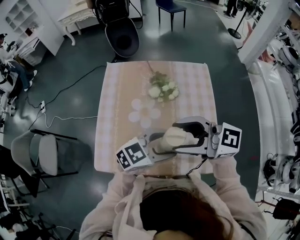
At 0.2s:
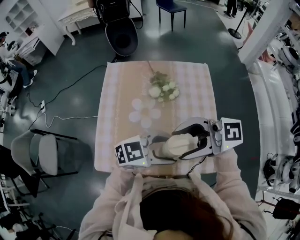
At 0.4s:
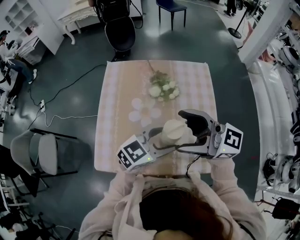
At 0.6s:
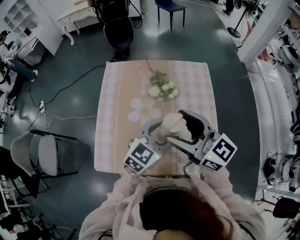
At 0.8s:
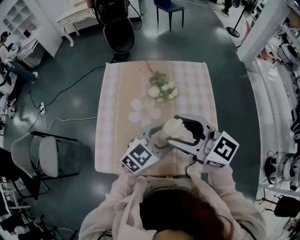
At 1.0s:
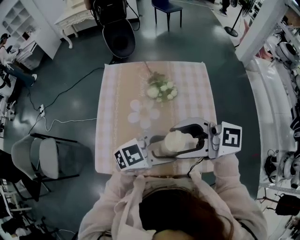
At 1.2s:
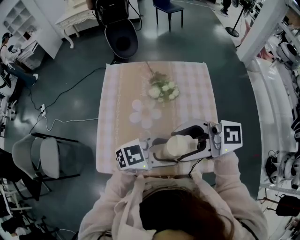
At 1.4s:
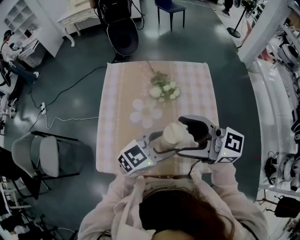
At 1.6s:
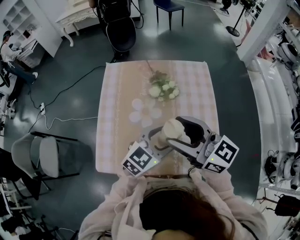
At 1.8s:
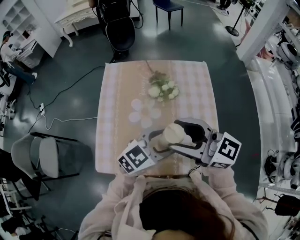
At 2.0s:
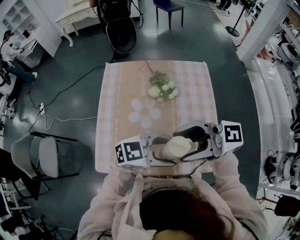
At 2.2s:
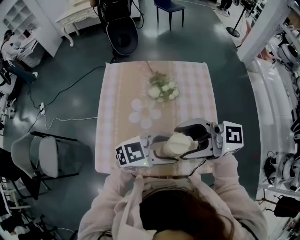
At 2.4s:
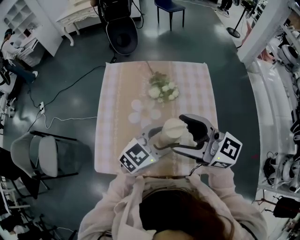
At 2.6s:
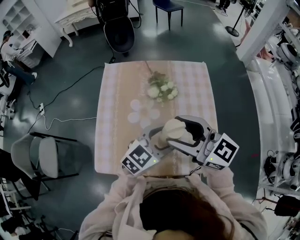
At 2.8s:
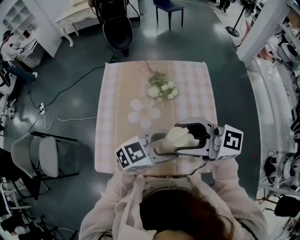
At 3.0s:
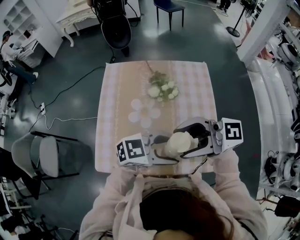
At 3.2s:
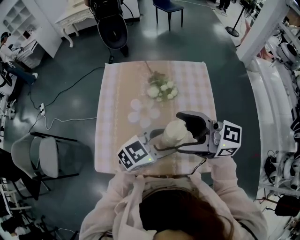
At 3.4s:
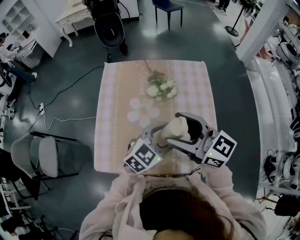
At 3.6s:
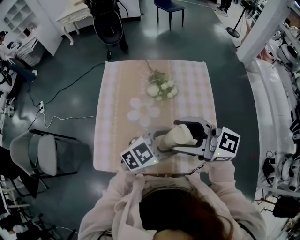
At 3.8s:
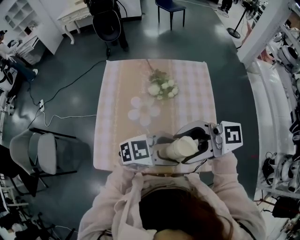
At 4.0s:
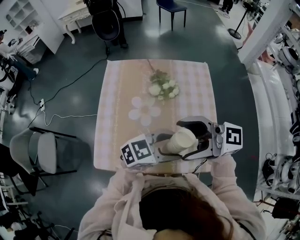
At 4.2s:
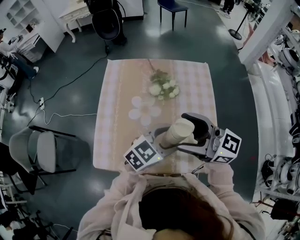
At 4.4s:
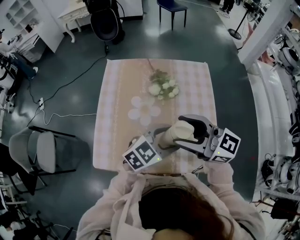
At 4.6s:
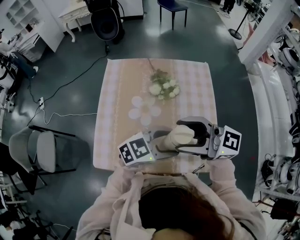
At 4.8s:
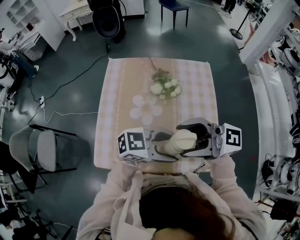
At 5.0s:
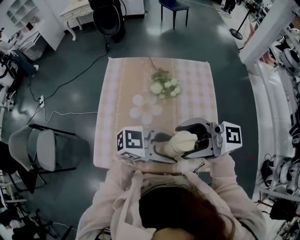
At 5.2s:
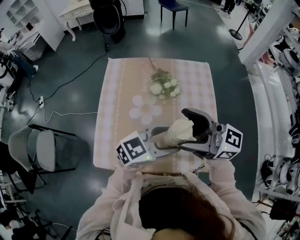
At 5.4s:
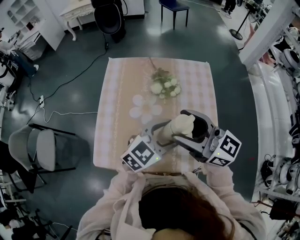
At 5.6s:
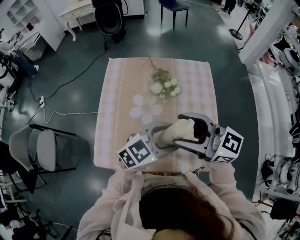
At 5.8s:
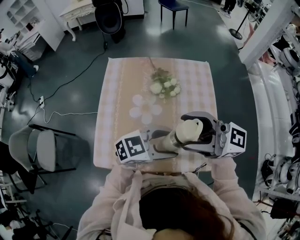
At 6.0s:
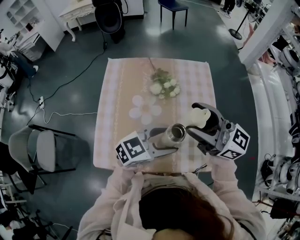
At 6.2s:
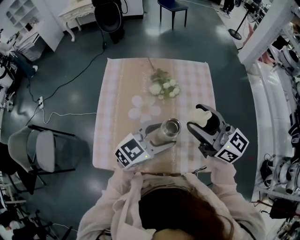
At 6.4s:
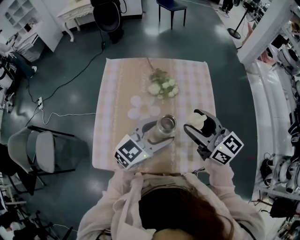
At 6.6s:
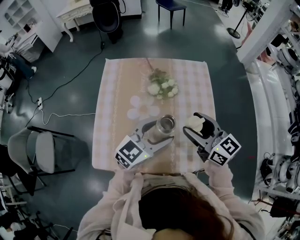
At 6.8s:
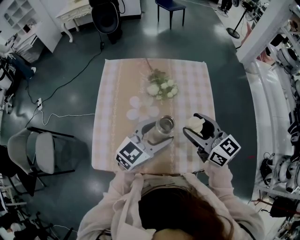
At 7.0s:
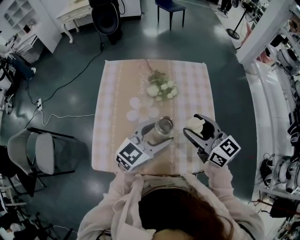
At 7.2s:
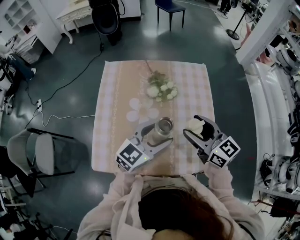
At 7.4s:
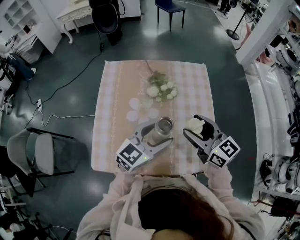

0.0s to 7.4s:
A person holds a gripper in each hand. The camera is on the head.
1.4s to 3.0s: The left gripper rotates about 20 degrees. Meanwhile the right gripper changes its angle by about 20 degrees.
3.0s to 4.4s: The right gripper rotates some 30 degrees. Meanwhile the left gripper changes place by some 5 cm, and turns by roughly 30 degrees.
4.4s to 6.0s: The right gripper changes place by roughly 5 cm.
6.0s to 7.4s: The right gripper shifts about 10 cm downward, and turns by about 30 degrees, while the left gripper ends up approximately 5 cm from where it was, and rotates about 20 degrees.

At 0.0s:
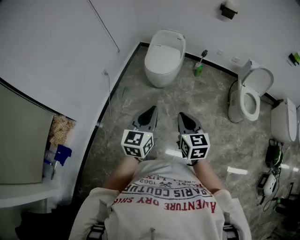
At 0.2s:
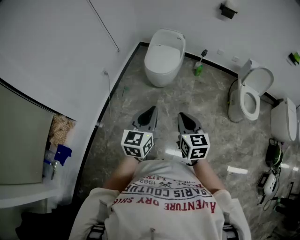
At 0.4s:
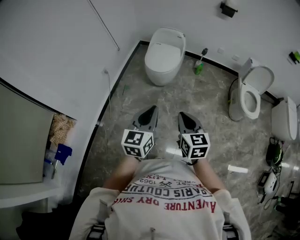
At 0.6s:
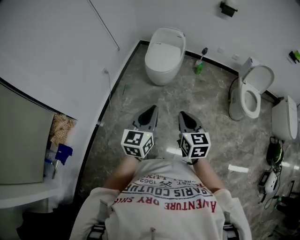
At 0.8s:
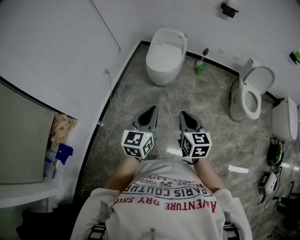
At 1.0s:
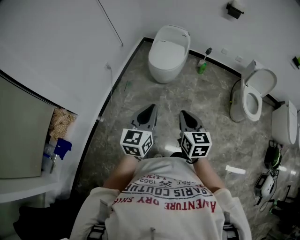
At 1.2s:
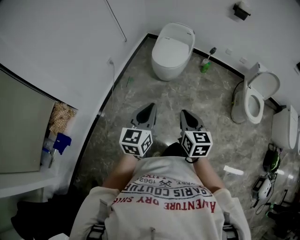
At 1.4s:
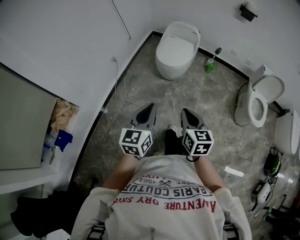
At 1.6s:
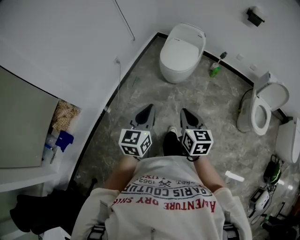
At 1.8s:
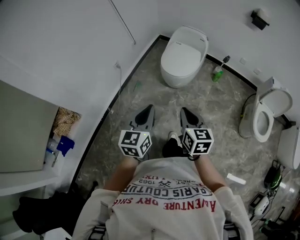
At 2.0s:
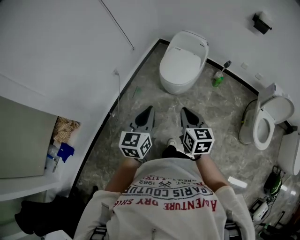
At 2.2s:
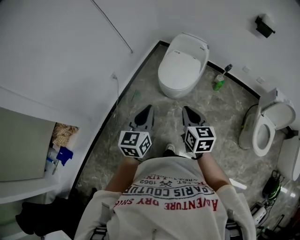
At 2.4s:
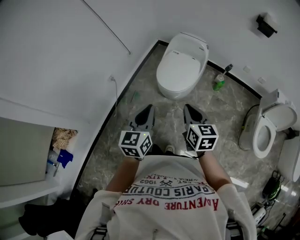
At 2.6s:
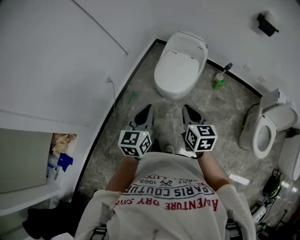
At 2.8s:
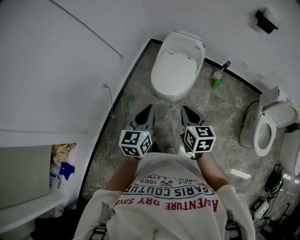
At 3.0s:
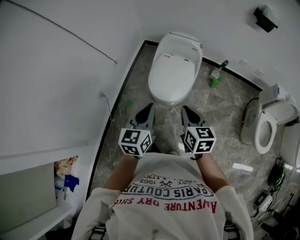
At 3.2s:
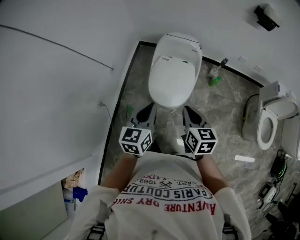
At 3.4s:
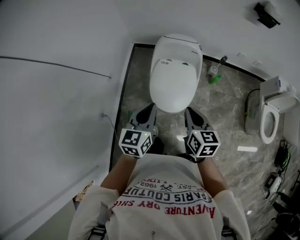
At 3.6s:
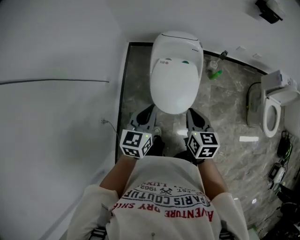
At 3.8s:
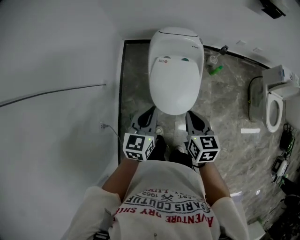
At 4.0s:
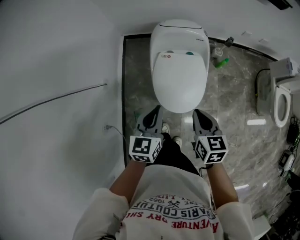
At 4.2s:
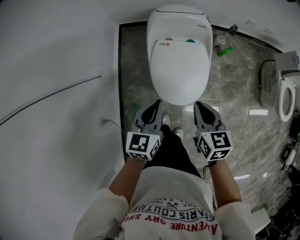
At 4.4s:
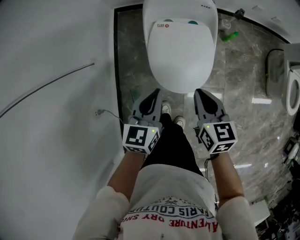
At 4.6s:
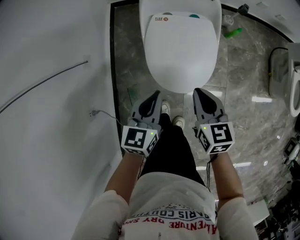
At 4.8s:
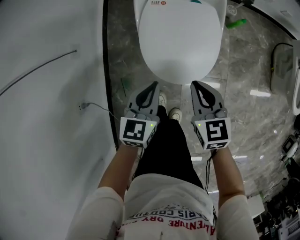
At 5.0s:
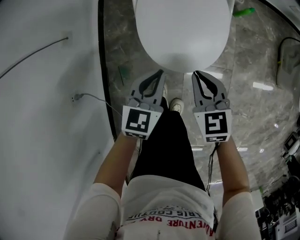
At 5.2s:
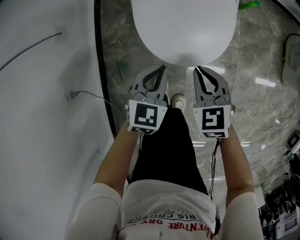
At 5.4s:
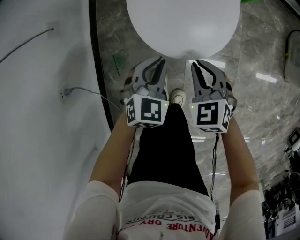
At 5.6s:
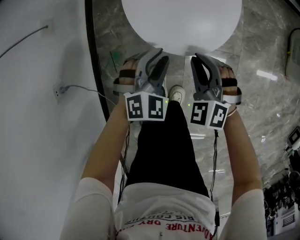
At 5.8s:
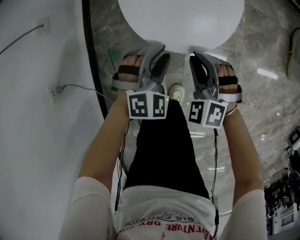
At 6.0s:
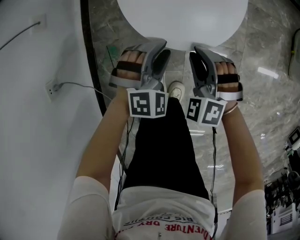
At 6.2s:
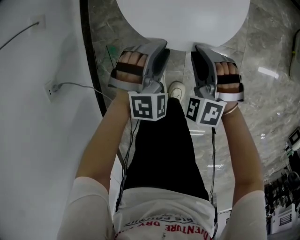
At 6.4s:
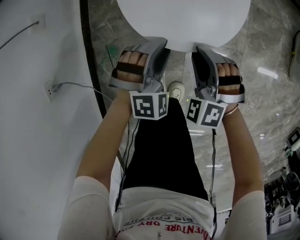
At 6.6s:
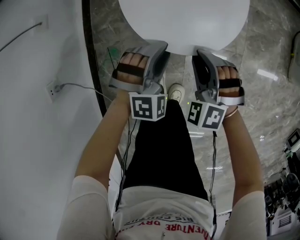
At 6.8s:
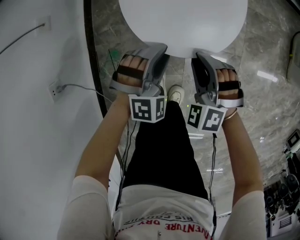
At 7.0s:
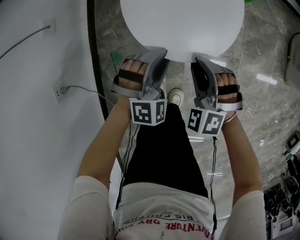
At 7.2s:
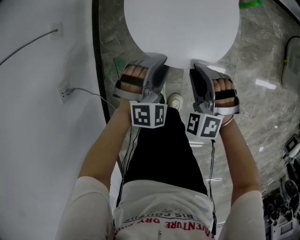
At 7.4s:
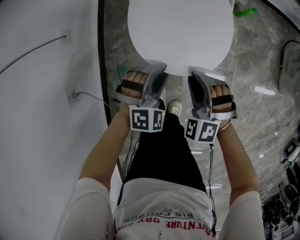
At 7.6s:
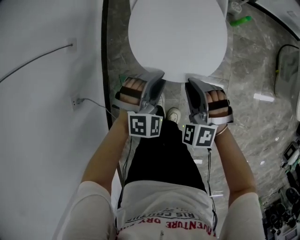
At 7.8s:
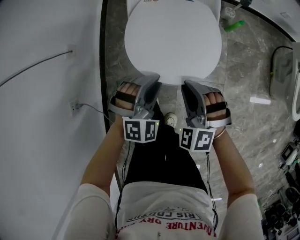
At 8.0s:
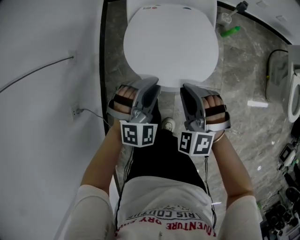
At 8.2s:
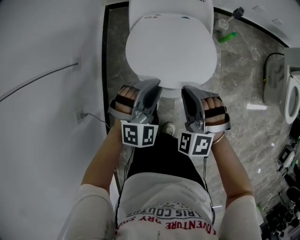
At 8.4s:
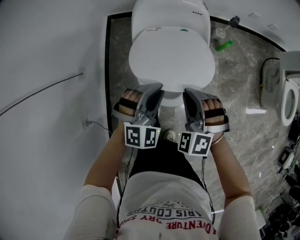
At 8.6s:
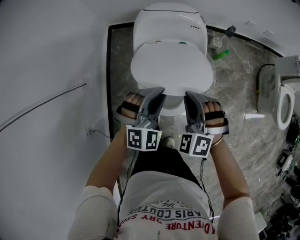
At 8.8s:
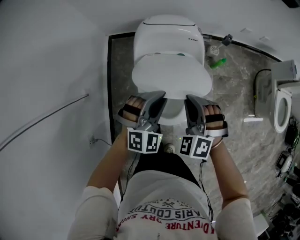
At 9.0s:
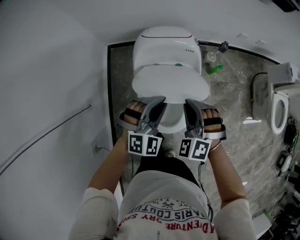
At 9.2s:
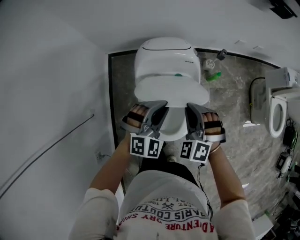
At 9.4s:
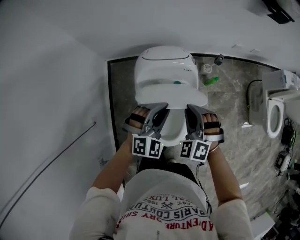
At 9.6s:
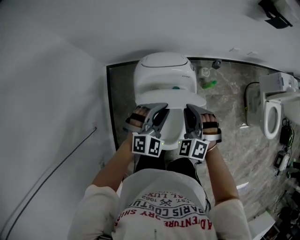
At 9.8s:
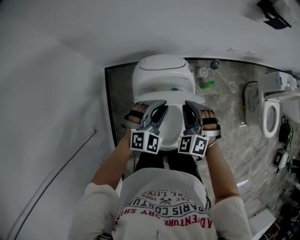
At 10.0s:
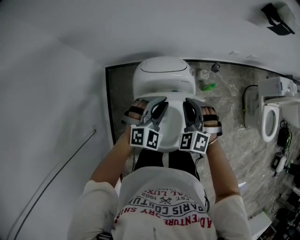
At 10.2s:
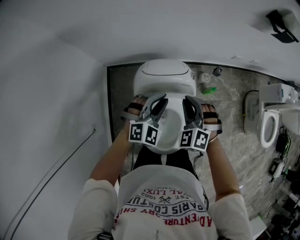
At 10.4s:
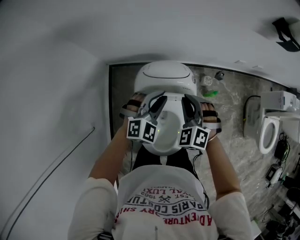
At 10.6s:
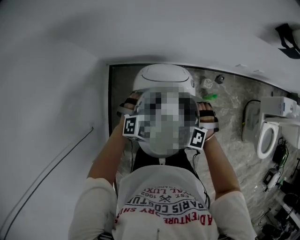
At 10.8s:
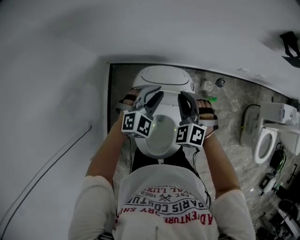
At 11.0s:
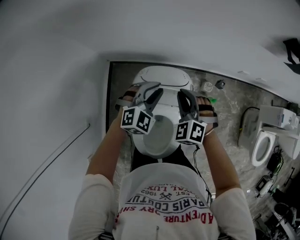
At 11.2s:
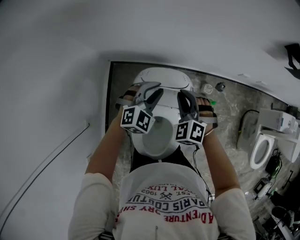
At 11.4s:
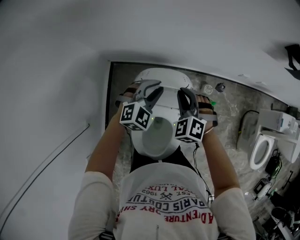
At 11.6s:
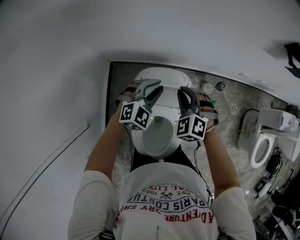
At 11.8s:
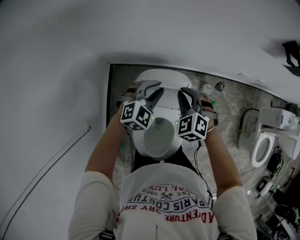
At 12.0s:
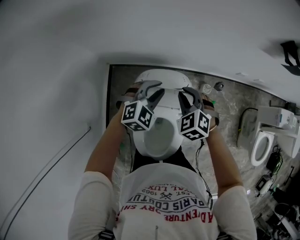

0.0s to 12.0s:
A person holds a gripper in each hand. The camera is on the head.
0.0s to 1.6s: The right gripper is displaced forward by some 10 cm; the left gripper shifts about 10 cm forward and to the left.
1.6s to 3.0s: The two grippers travel together, forward, about 40 cm.
3.0s to 4.4s: The two grippers go about 35 cm forward, downward and to the left. The left gripper rotates about 20 degrees.
4.4s to 6.0s: The grippers both shift downward by roughly 35 cm. The left gripper twists roughly 70 degrees clockwise, seen from behind, and opens its fingers, while the right gripper twists some 70 degrees counterclockwise, seen from behind.
6.0s to 7.6s: The grippers both shift upward by roughly 15 cm.
7.6s to 9.0s: The grippers both shift upward and forward by approximately 30 cm.
9.0s to 10.4s: The grippers both shift forward by roughly 20 cm.
10.4s to 12.0s: Both grippers travel together forward, about 10 cm.

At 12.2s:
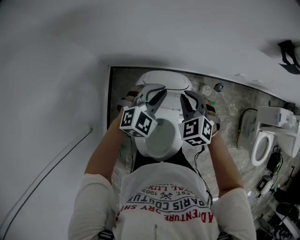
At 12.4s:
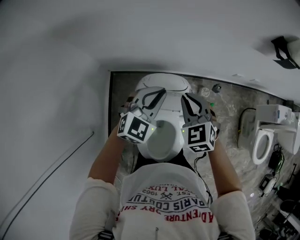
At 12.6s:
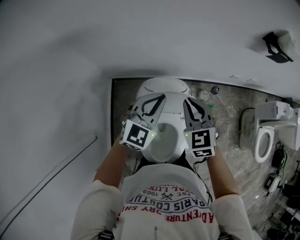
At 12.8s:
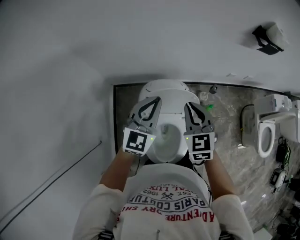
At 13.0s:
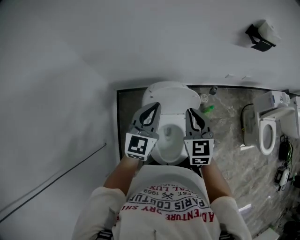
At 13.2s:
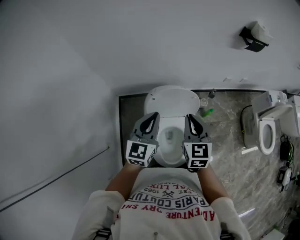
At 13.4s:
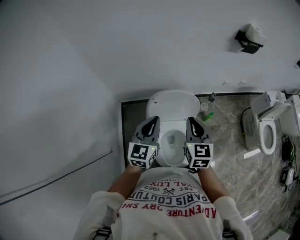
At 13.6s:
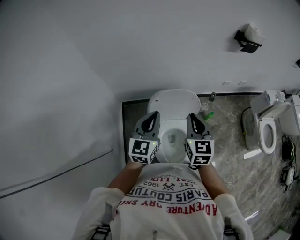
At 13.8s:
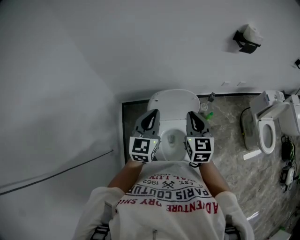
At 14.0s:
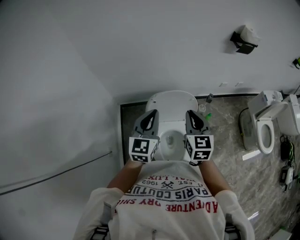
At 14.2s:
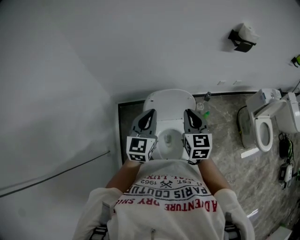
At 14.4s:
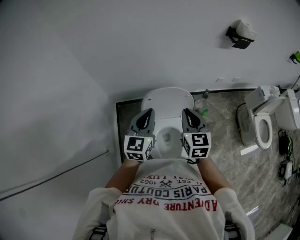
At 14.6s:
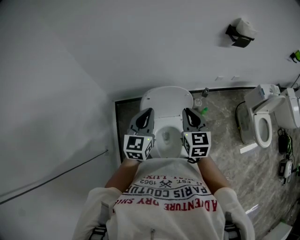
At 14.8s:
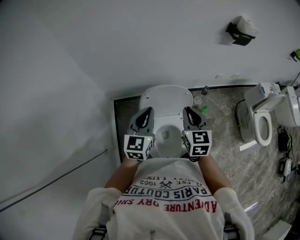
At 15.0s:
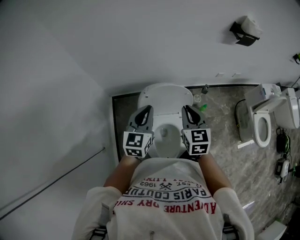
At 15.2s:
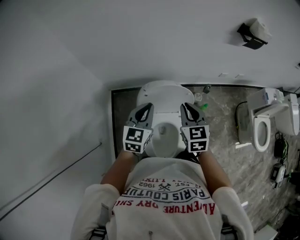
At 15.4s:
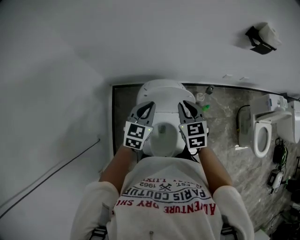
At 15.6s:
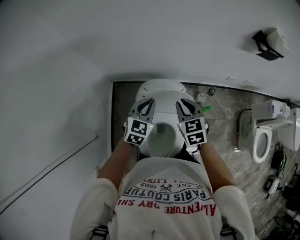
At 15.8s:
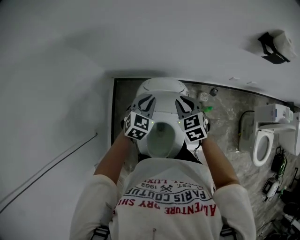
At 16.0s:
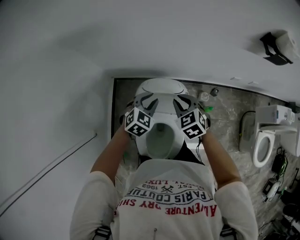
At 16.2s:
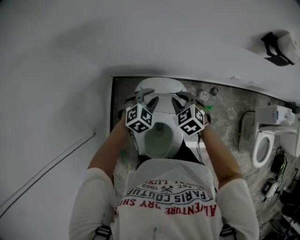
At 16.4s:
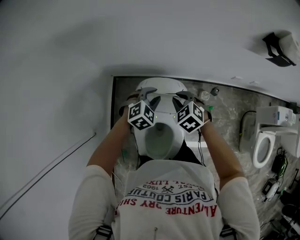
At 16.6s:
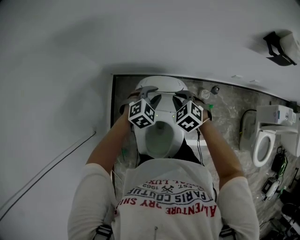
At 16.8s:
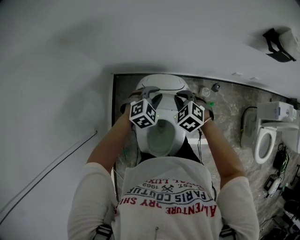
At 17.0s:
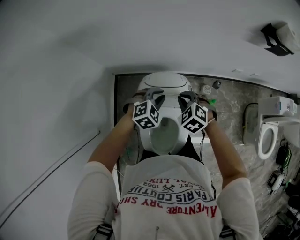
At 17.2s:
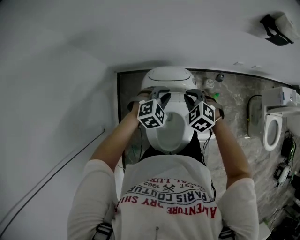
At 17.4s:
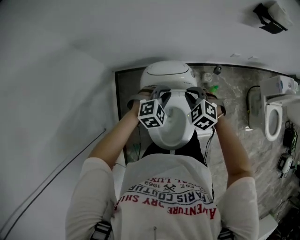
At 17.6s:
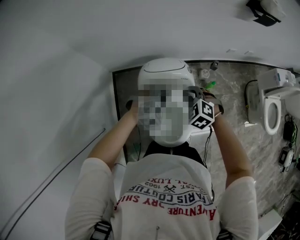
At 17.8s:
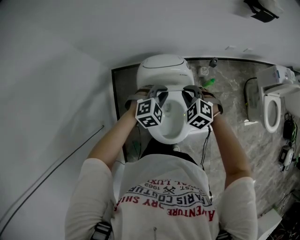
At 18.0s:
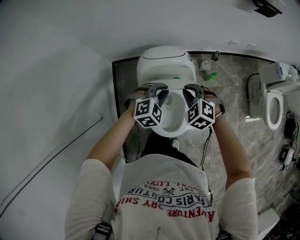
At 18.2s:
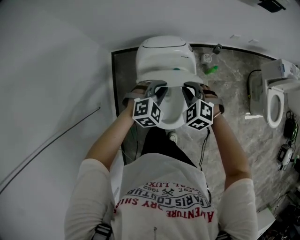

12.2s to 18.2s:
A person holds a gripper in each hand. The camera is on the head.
12.2s to 13.8s: The two grippers go about 30 cm backward and upward. The right gripper rotates some 50 degrees. Meanwhile the left gripper rotates roughly 40 degrees.
13.8s to 15.2s: The right gripper heads forward and downward, covering roughly 10 cm; the left gripper travels downward and forward by roughly 10 cm.
15.2s to 16.6s: The right gripper goes some 20 cm downward and forward, and rotates some 50 degrees, while the left gripper goes about 20 cm downward, forward and to the right, points its fingers about 30 degrees further downward, and opens its fingers.
16.6s to 18.2s: Both grippers travel together backward, some 20 cm.
